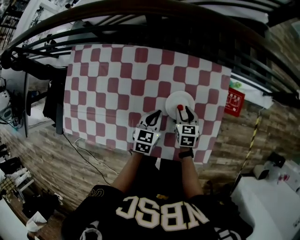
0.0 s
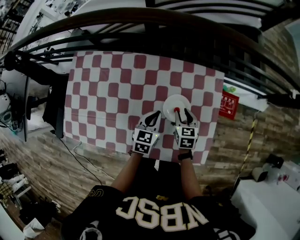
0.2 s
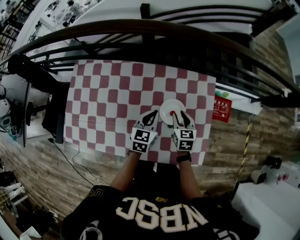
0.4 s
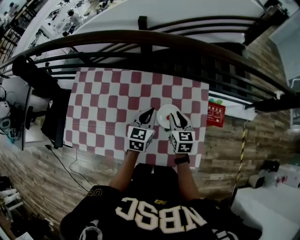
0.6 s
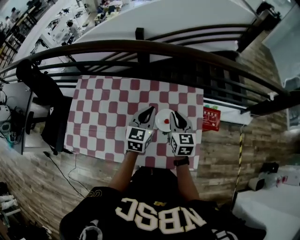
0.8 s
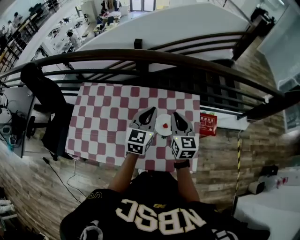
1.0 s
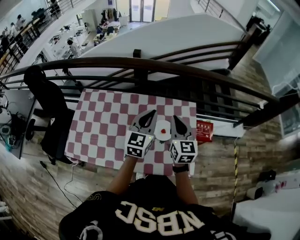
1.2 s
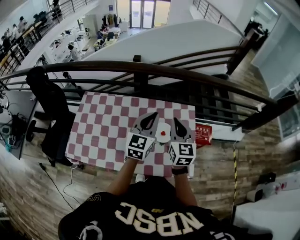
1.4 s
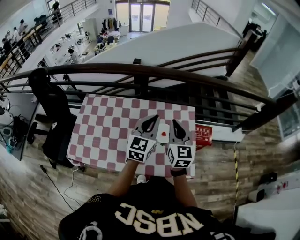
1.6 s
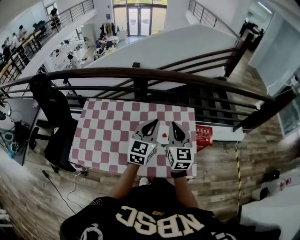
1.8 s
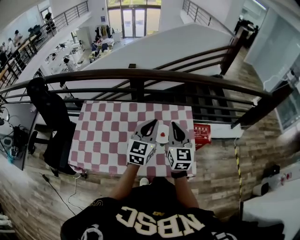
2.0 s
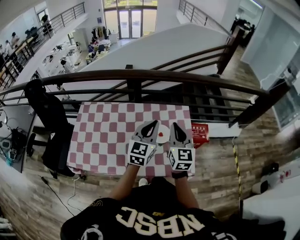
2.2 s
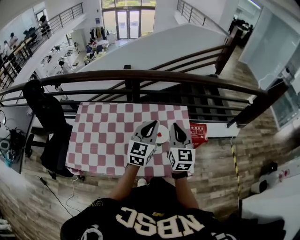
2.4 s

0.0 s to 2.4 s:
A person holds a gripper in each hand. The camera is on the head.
0.0 to 1.2 s: Both grippers travel together upward, about 30 cm. The right gripper points its fingers about 30 degrees further upward, and closes up. The left gripper points its fingers roughly 30 degrees further upward.
1.2 to 2.4 s: The grippers both shift backward by some 10 cm.

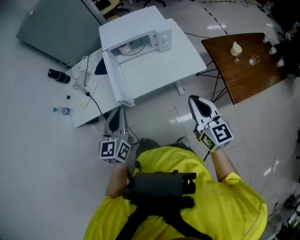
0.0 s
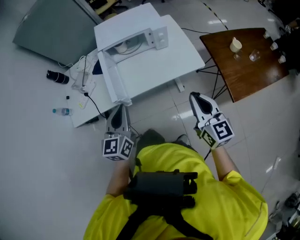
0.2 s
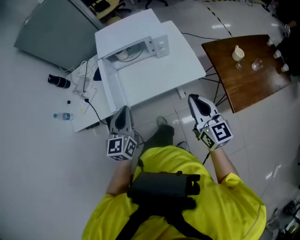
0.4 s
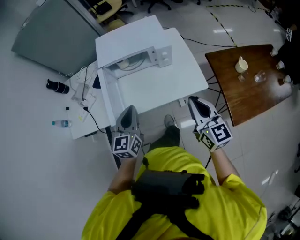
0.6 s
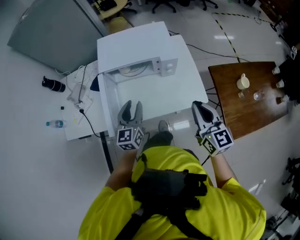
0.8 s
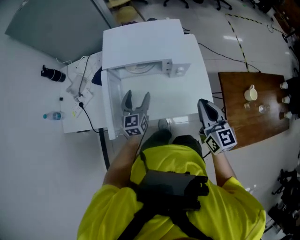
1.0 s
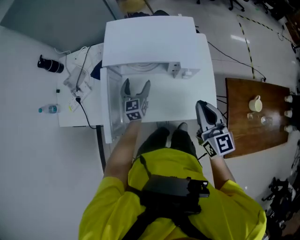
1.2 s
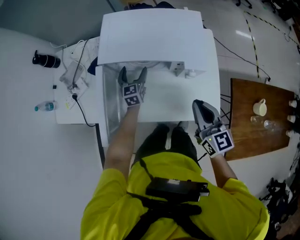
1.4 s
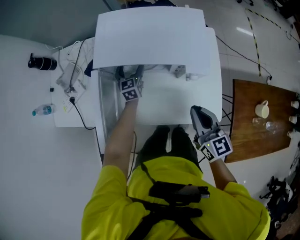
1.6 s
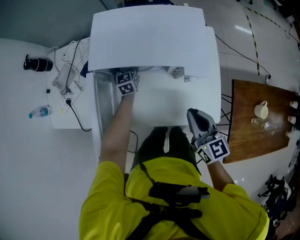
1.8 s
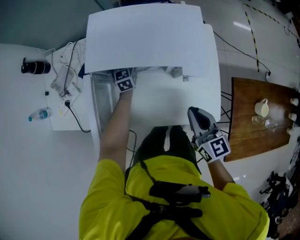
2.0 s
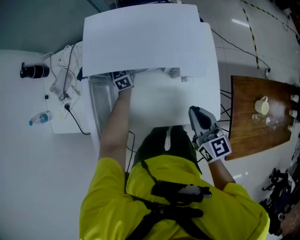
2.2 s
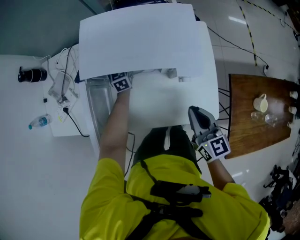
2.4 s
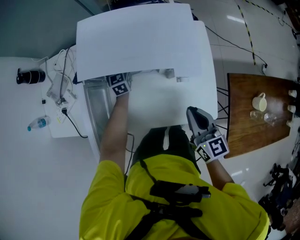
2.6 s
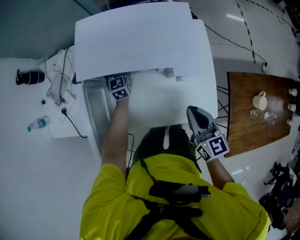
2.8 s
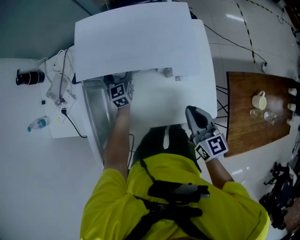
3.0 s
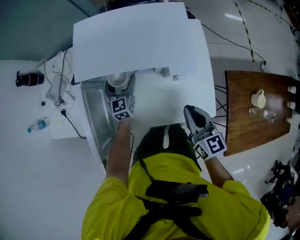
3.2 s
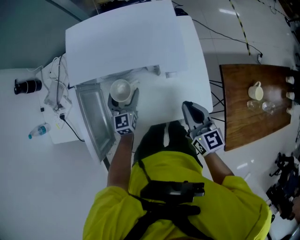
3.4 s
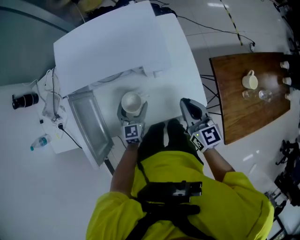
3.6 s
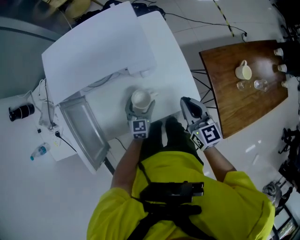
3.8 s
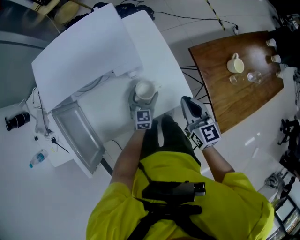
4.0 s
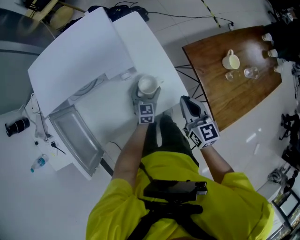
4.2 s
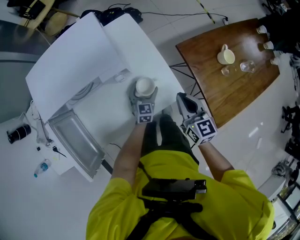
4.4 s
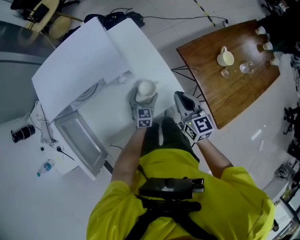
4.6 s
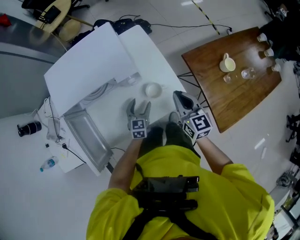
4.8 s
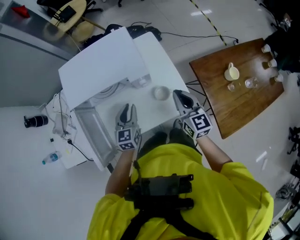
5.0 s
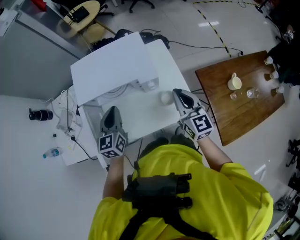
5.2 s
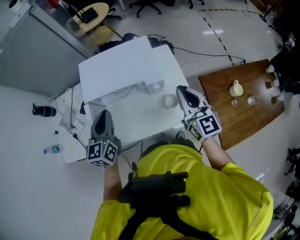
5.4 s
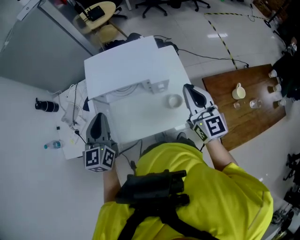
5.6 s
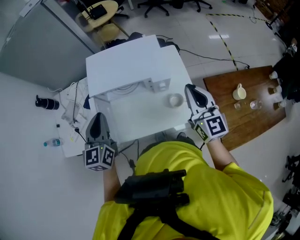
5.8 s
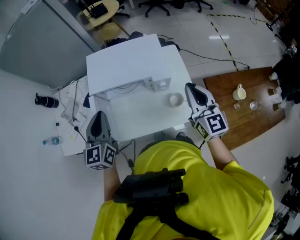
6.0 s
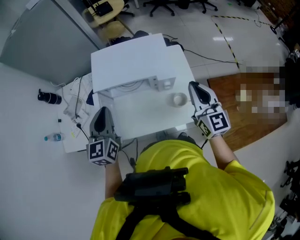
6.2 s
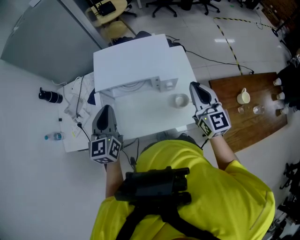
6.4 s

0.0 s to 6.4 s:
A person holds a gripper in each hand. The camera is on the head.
0.0 to 1.6 s: The left gripper is displaced forward and downward by approximately 60 cm, rotates about 30 degrees, and opens its fingers, while the right gripper is displaced forward by roughly 35 cm, and swivels about 20 degrees.
1.6 to 3.2 s: The left gripper shifts by some 5 cm.
3.2 to 4.8 s: The left gripper shifts by approximately 30 cm, and rotates approximately 30 degrees. Meanwhile the right gripper ends up about 15 cm from where it was, and rotates roughly 20 degrees.
4.8 to 6.4 s: The right gripper heads upward and to the left, covering some 20 cm, and swivels approximately 20 degrees, while the left gripper moves upward and to the left, approximately 40 cm, changes its angle by roughly 30 degrees, and closes.

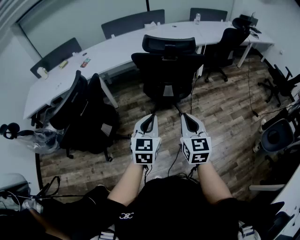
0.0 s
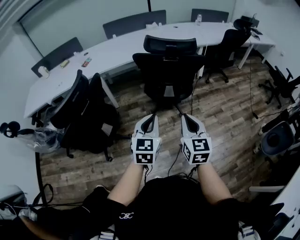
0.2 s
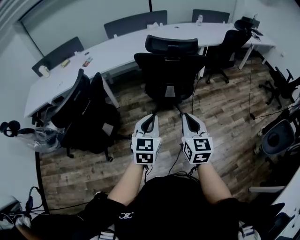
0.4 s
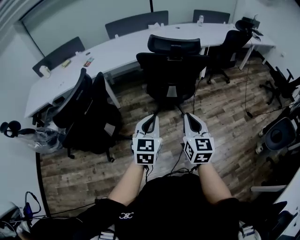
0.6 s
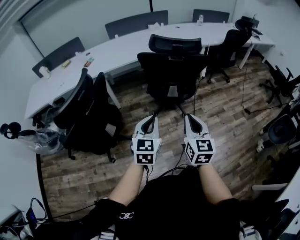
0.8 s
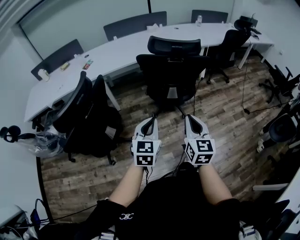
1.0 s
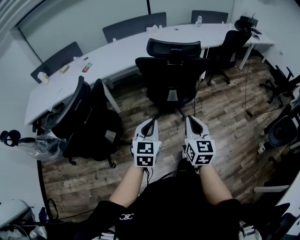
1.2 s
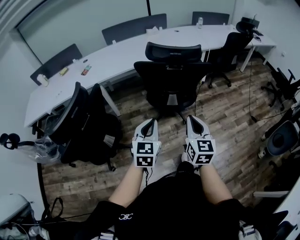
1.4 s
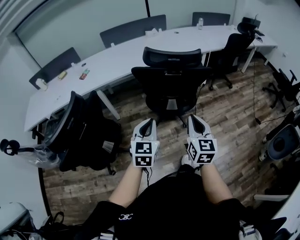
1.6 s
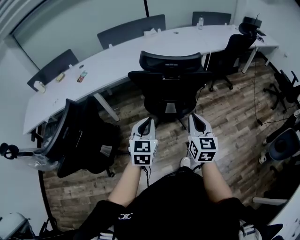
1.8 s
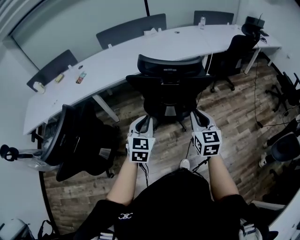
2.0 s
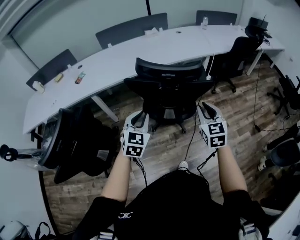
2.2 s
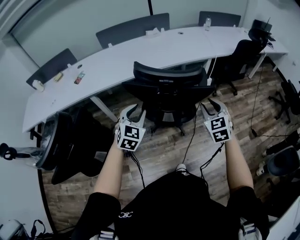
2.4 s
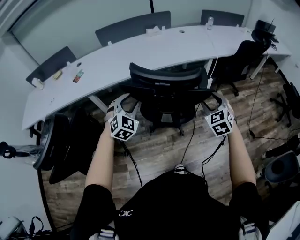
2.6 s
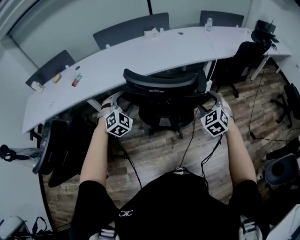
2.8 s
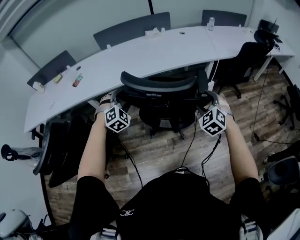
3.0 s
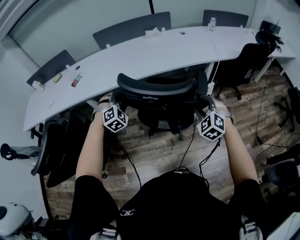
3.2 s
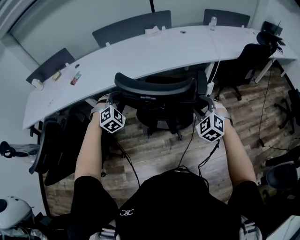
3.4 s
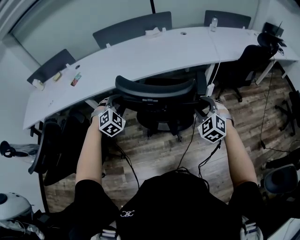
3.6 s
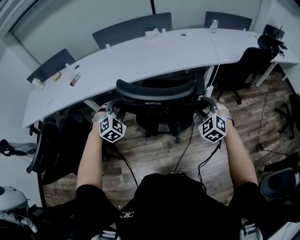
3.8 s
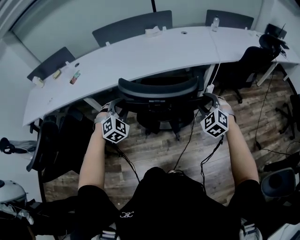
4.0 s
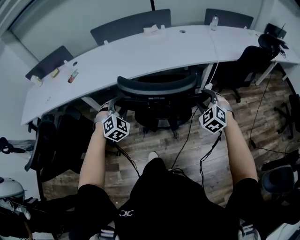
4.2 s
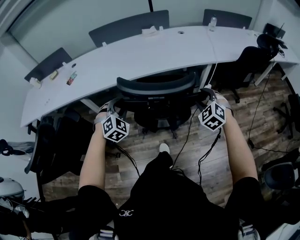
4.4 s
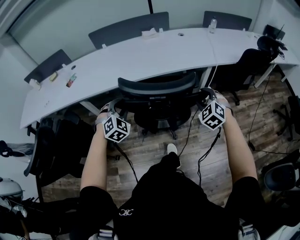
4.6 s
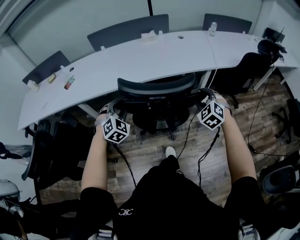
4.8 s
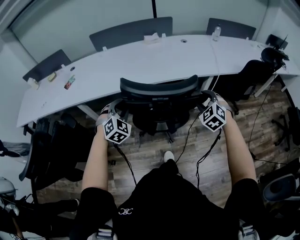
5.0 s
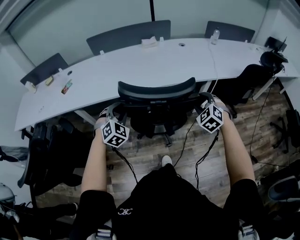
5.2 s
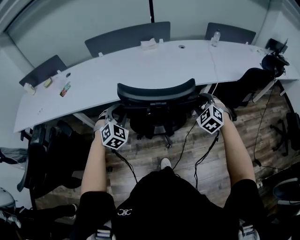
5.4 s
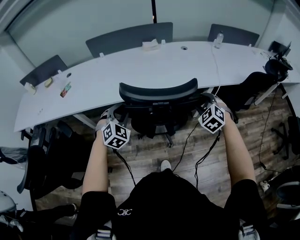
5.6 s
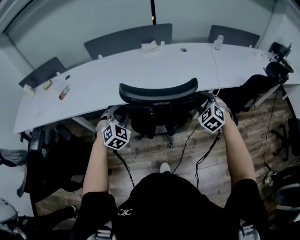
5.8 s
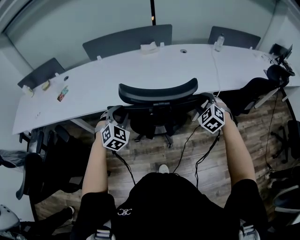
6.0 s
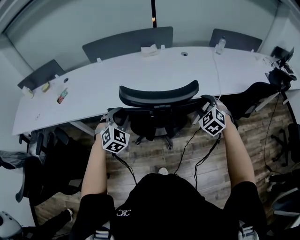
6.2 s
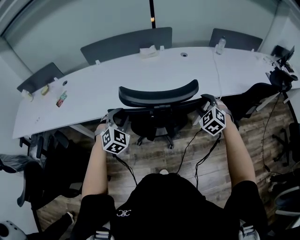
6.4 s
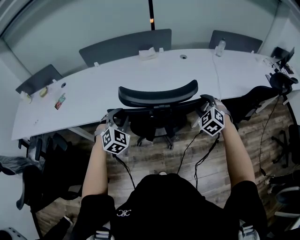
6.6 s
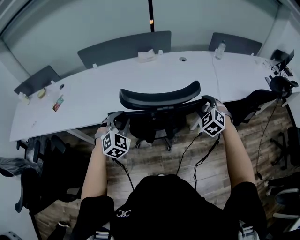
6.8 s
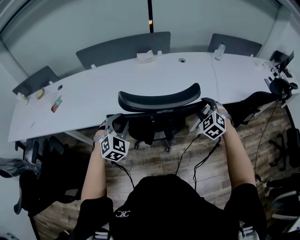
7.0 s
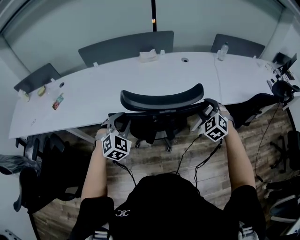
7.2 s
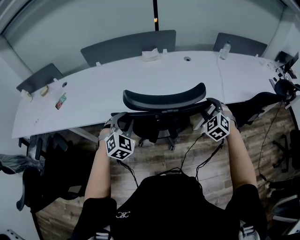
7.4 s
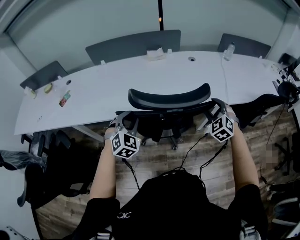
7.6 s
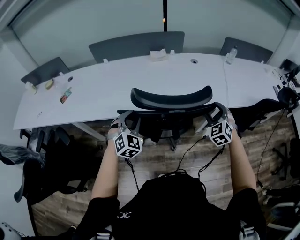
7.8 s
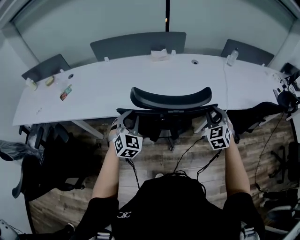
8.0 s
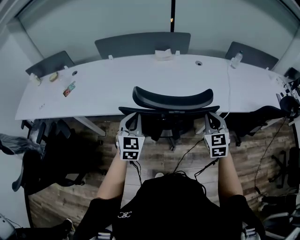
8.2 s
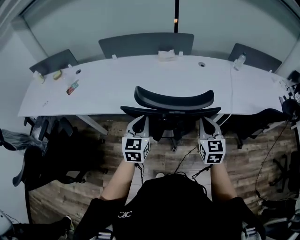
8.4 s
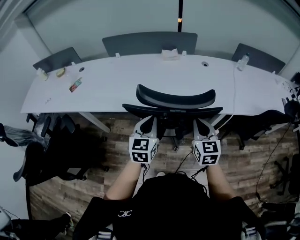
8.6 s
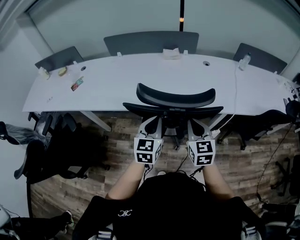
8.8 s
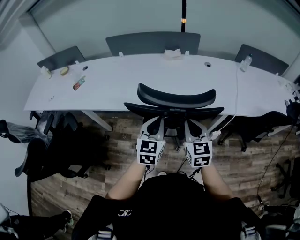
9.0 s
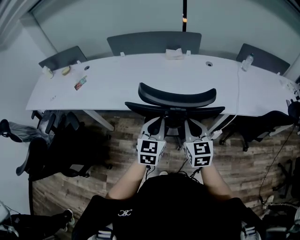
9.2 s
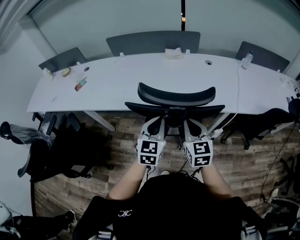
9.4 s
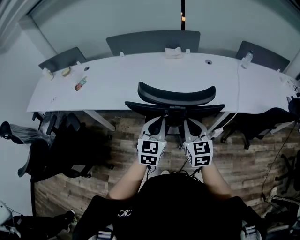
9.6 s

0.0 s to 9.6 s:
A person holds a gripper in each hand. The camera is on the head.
0.0 to 1.6 s: Both grippers move forward, about 15 cm.
1.6 to 3.2 s: The left gripper goes some 35 cm forward, rotates around the line of its fingers by approximately 50 degrees, clockwise from behind, and opens; the right gripper moves forward and to the right, roughly 35 cm, twists about 60 degrees counterclockwise, seen from behind, and opens.
3.2 to 4.8 s: The left gripper goes about 5 cm to the right; the right gripper shifts some 15 cm forward and to the right.
4.8 to 6.4 s: Both grippers travel together forward, roughly 20 cm.
6.4 to 8.0 s: The grippers stay close to where they were, moving slightly.
8.0 to 9.6 s: The right gripper moves to the left and backward, approximately 15 cm, rotates approximately 40 degrees, and closes up; the left gripper goes some 10 cm to the right and backward, rotates roughly 30 degrees, and closes its fingers.

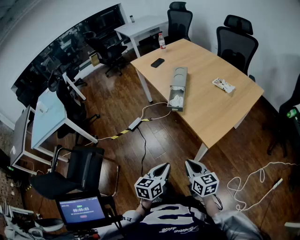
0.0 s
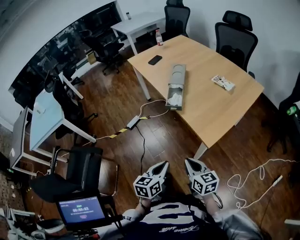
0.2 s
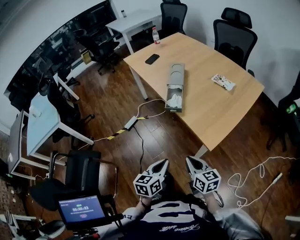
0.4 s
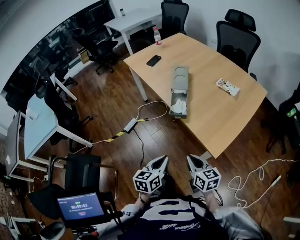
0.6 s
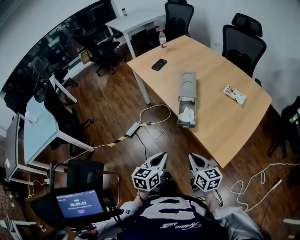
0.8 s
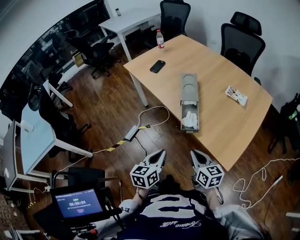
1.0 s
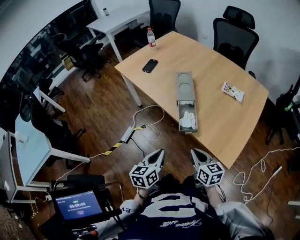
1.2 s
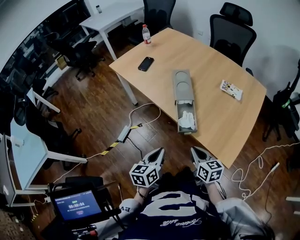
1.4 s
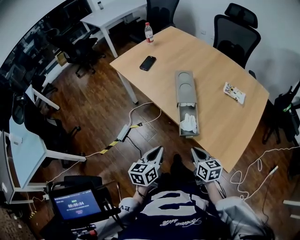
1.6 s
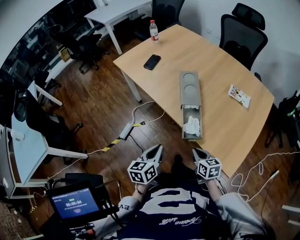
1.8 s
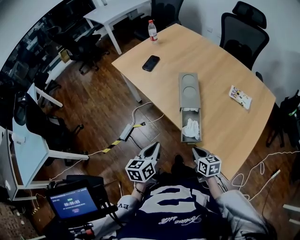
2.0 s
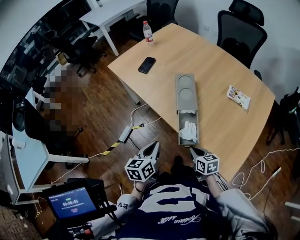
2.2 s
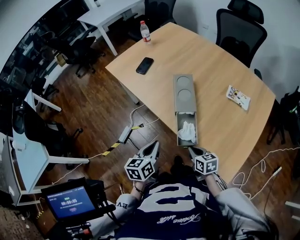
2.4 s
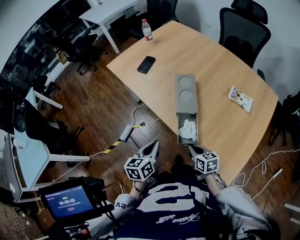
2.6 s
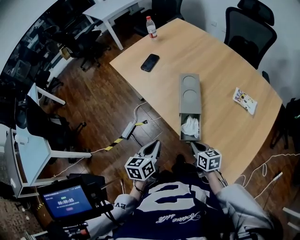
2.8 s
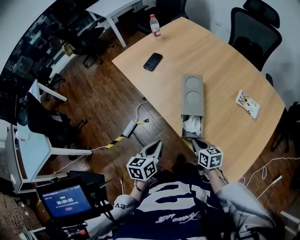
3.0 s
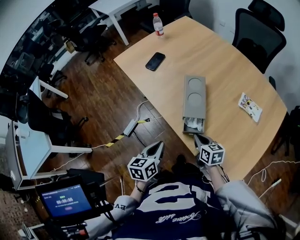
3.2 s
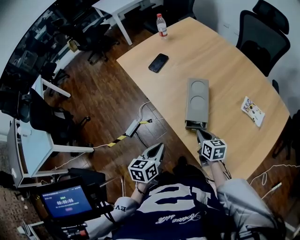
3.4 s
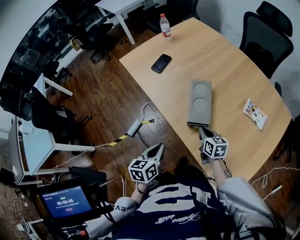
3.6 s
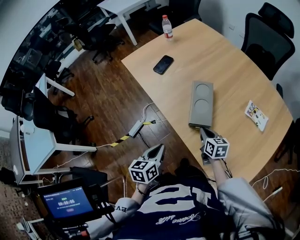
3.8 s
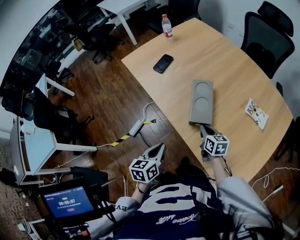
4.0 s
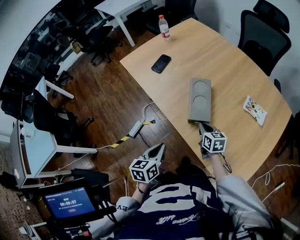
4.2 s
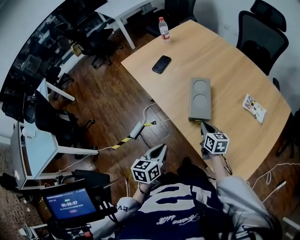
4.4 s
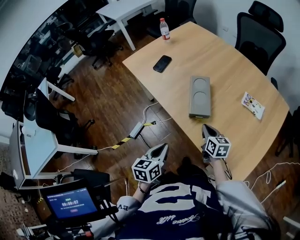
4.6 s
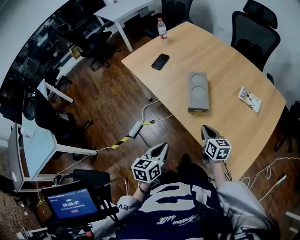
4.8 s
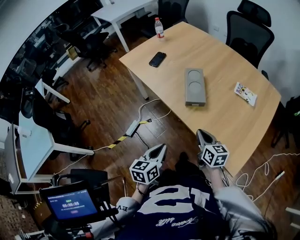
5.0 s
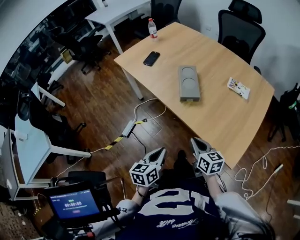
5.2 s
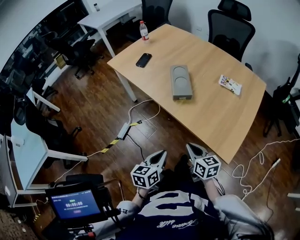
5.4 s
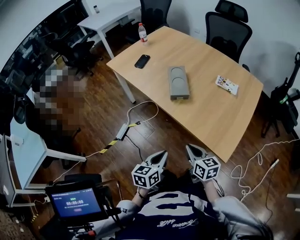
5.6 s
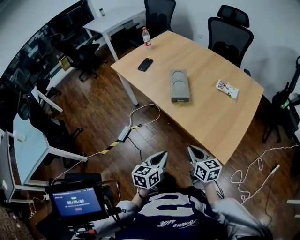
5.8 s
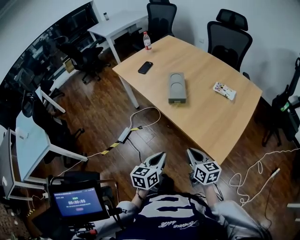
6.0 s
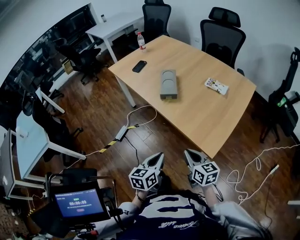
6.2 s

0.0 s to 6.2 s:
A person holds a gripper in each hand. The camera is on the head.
0.0 to 1.6 s: The left gripper heads forward and to the left, covering some 40 cm. Meanwhile the right gripper shifts about 30 cm forward.
1.6 to 3.2 s: The two grippers go roughly 15 cm forward.
3.2 to 4.6 s: The right gripper goes forward and returns, approximately 10 cm each way.
4.6 to 6.2 s: The left gripper is displaced backward and to the right by about 25 cm; the right gripper heads backward, covering some 35 cm.
